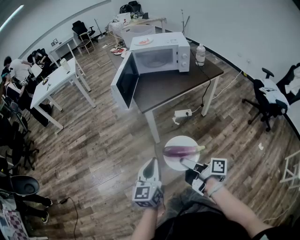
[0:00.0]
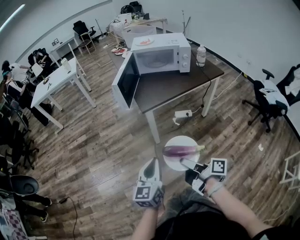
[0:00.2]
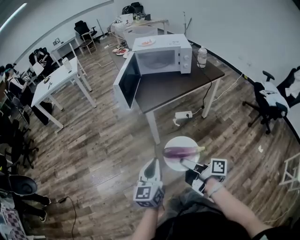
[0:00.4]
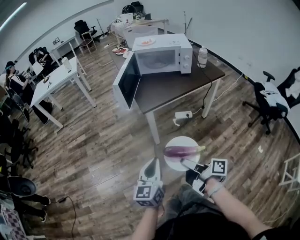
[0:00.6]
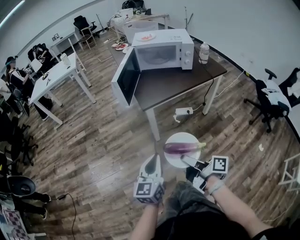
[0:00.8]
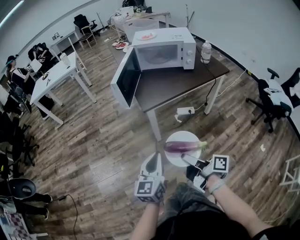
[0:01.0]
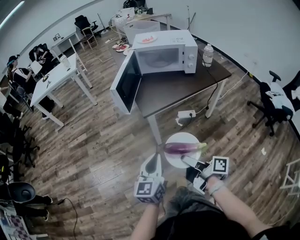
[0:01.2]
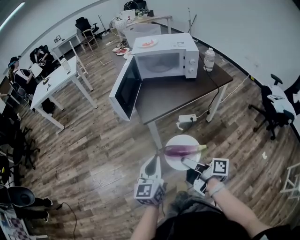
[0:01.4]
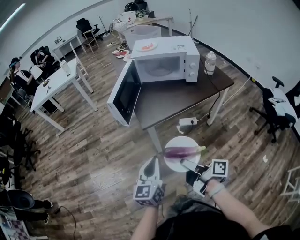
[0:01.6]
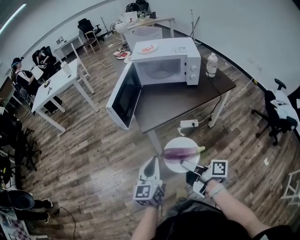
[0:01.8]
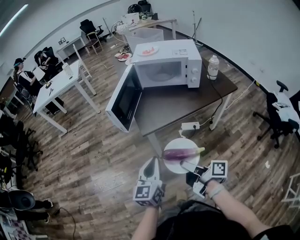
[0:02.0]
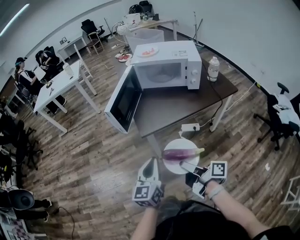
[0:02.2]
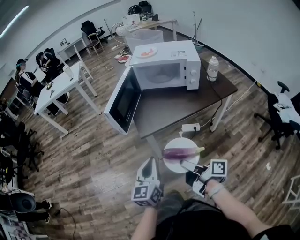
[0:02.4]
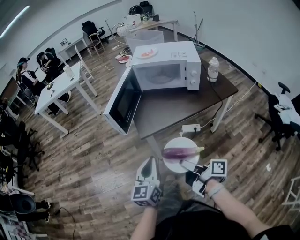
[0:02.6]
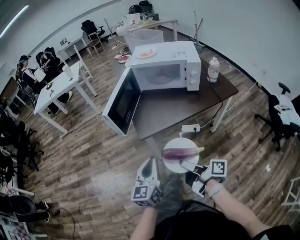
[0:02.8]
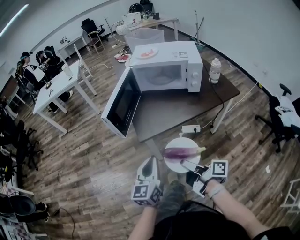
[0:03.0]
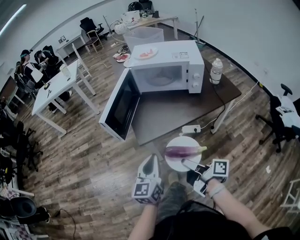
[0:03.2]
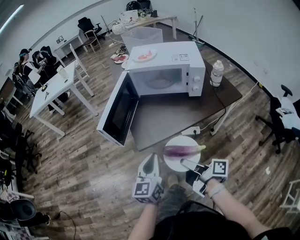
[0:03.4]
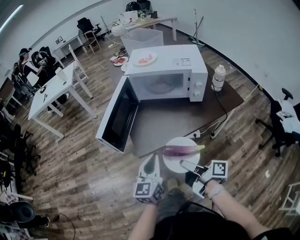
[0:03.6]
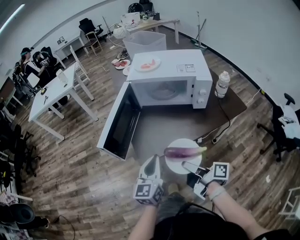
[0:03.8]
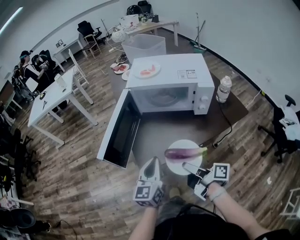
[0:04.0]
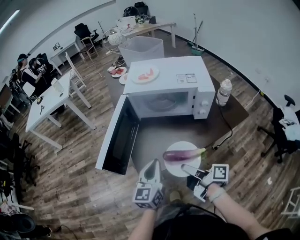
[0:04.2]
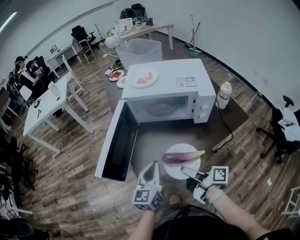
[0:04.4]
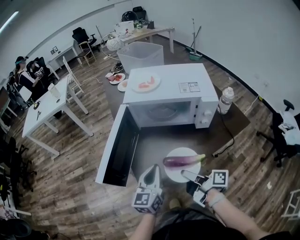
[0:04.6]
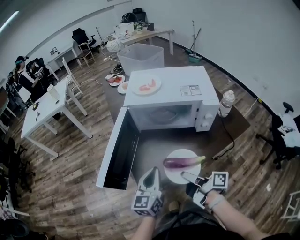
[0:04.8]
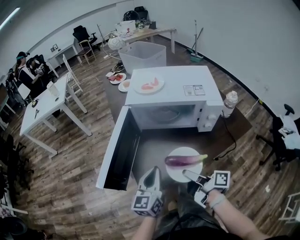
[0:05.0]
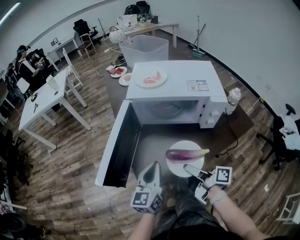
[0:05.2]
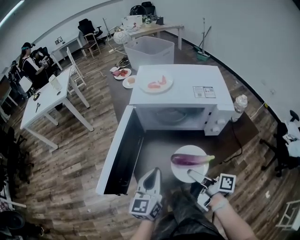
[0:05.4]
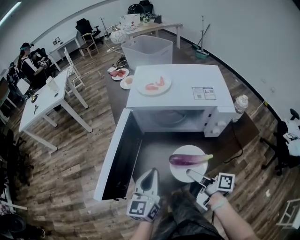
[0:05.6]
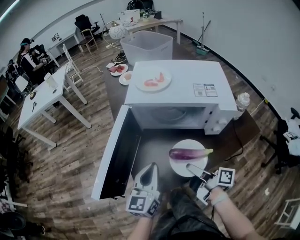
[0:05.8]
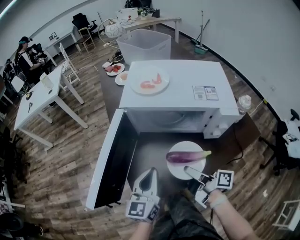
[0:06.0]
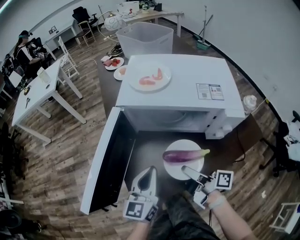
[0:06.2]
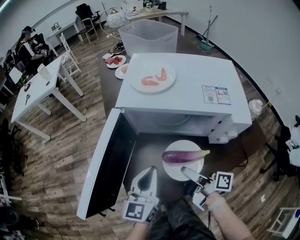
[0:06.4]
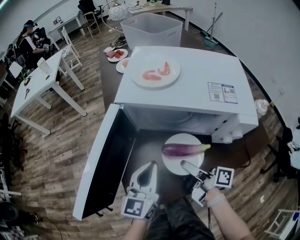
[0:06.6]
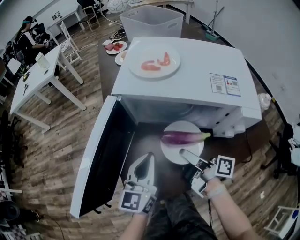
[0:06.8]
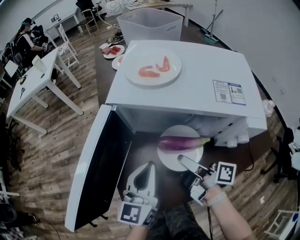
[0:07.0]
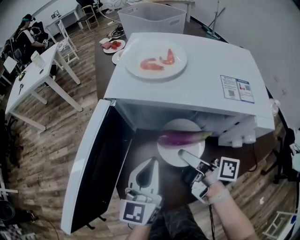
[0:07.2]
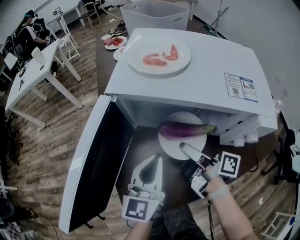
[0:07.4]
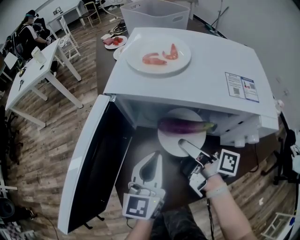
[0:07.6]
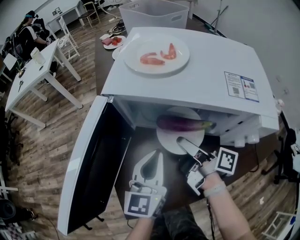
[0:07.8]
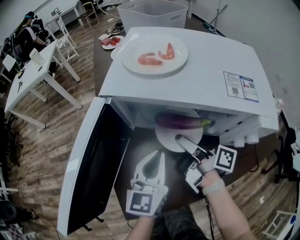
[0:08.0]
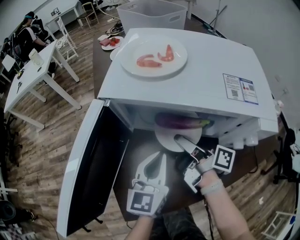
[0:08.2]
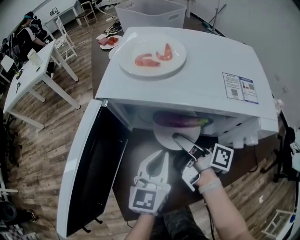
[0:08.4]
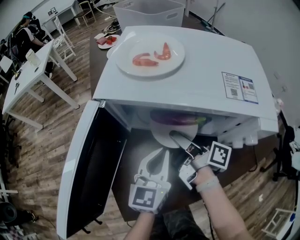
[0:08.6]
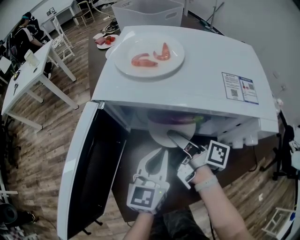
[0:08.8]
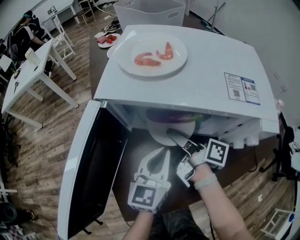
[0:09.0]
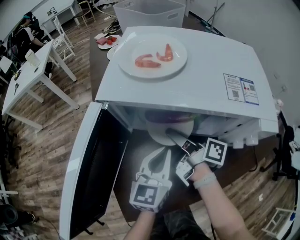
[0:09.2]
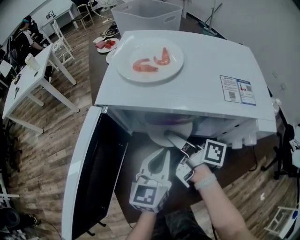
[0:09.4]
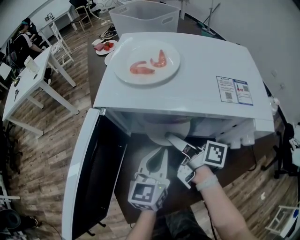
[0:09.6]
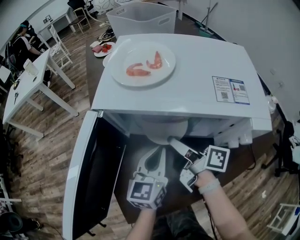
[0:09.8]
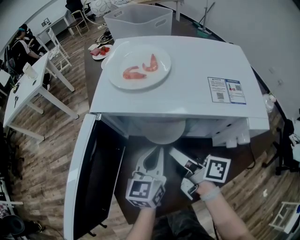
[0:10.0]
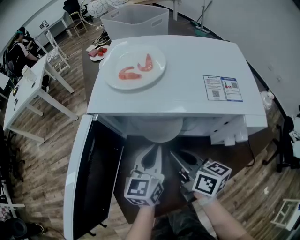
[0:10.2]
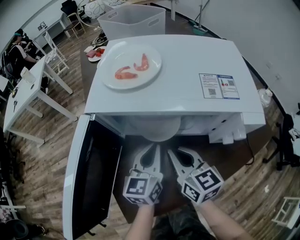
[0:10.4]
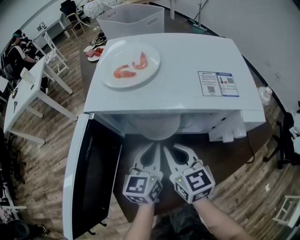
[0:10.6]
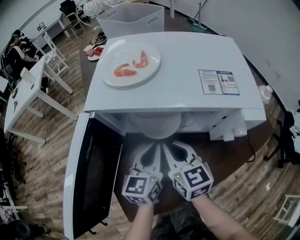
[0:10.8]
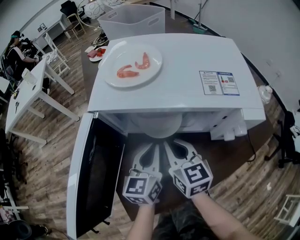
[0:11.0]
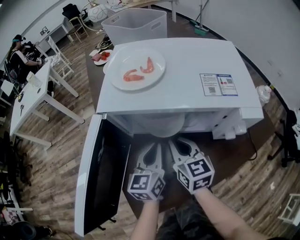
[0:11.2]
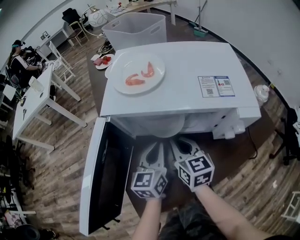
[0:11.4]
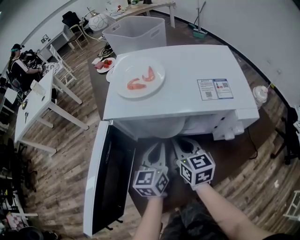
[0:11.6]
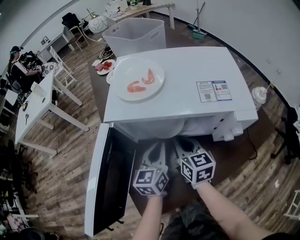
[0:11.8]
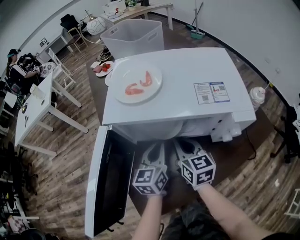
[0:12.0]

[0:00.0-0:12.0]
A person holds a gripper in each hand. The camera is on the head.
0:00.0 to 0:01.6: Both grippers travel together forward, approximately 10 cm.
0:01.6 to 0:03.0: The grippers both shift forward and to the right by about 10 cm.
0:03.0 to 0:04.4: Both grippers move forward, some 20 cm.
0:04.4 to 0:06.0: The two grippers go some 10 cm forward.
0:06.0 to 0:07.6: The left gripper moves forward, some 10 cm. The right gripper goes roughly 15 cm forward.
0:07.6 to 0:09.0: The right gripper changes place by about 5 cm; the left gripper changes place by approximately 5 cm.
0:09.0 to 0:10.4: The right gripper moves backward, about 5 cm, and rotates around the line of its fingers by roughly 60 degrees, counterclockwise from behind.
0:10.4 to 0:12.0: There are only small adjustments of the grippers.

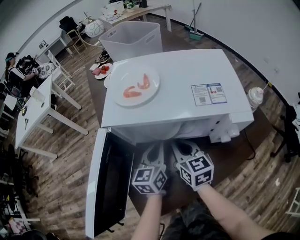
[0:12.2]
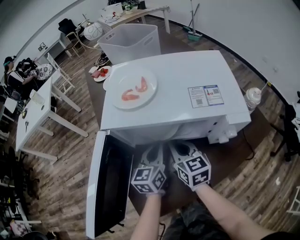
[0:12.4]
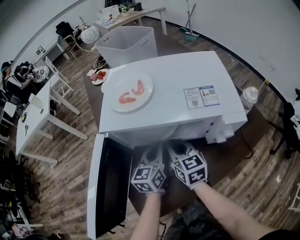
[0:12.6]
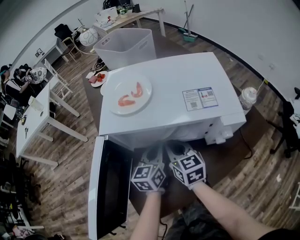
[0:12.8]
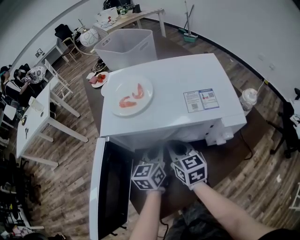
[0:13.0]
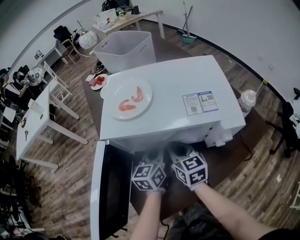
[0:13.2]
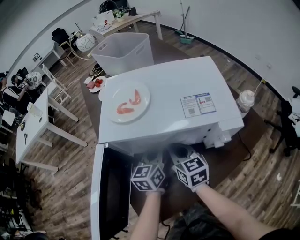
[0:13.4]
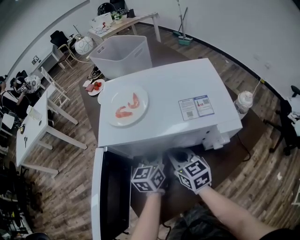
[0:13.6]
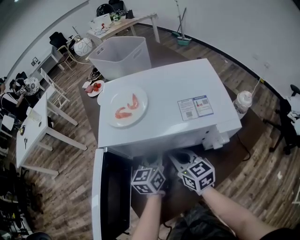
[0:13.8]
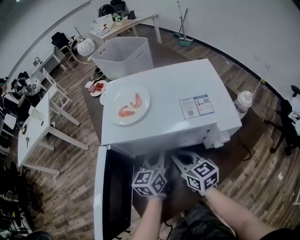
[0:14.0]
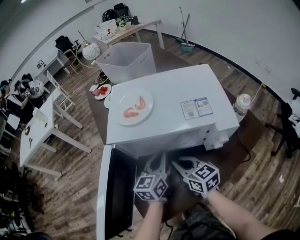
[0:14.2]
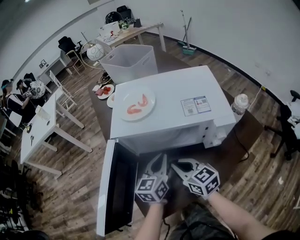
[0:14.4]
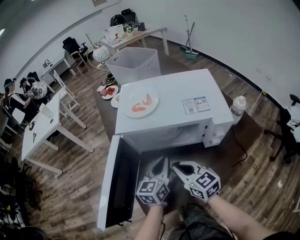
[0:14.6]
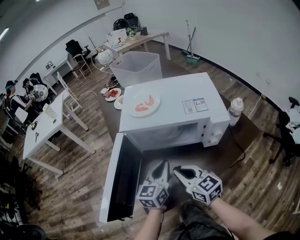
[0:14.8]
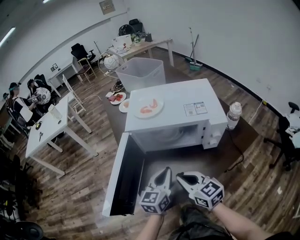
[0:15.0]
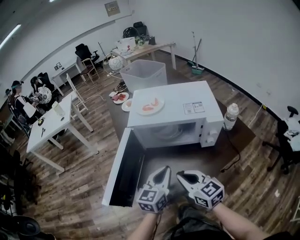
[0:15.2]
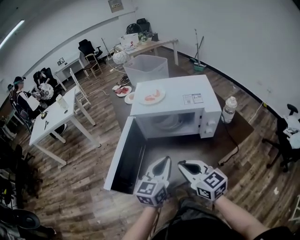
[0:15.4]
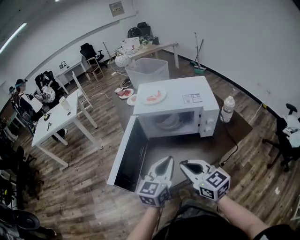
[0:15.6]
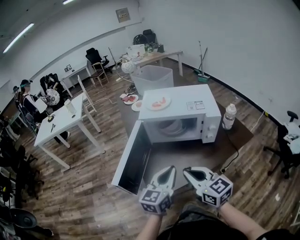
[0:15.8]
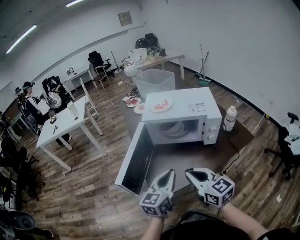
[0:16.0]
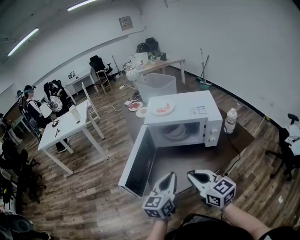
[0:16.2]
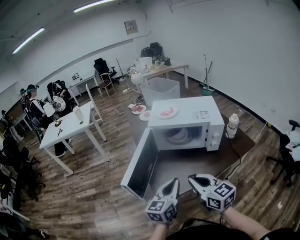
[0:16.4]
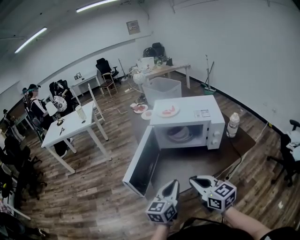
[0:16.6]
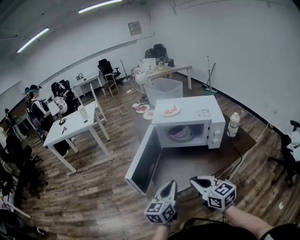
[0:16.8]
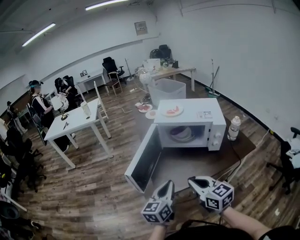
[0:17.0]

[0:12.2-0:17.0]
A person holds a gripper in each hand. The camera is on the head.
0:12.2 to 0:13.8: There are only small adjustments of the grippers.
0:13.8 to 0:15.4: The two grippers go about 25 cm backward and upward.
0:15.4 to 0:17.0: The right gripper goes about 10 cm backward; the left gripper shifts about 15 cm backward and to the left.

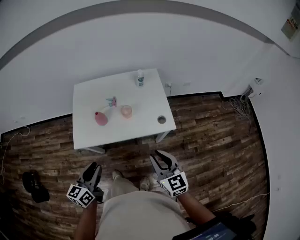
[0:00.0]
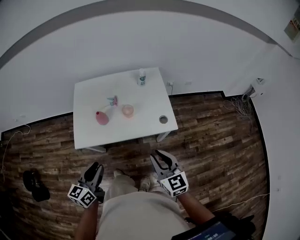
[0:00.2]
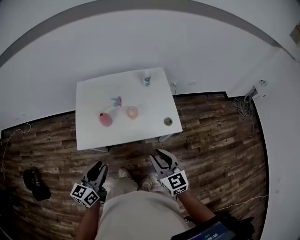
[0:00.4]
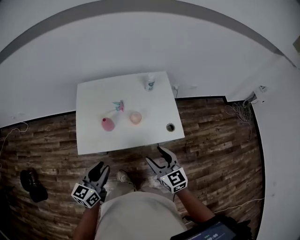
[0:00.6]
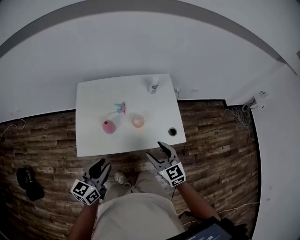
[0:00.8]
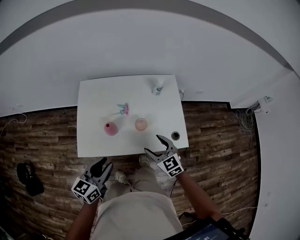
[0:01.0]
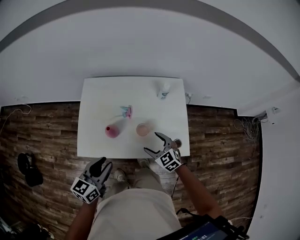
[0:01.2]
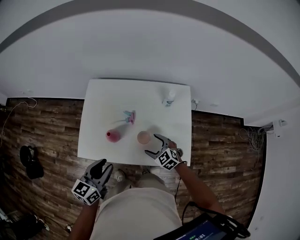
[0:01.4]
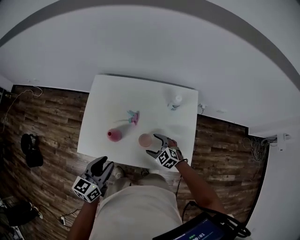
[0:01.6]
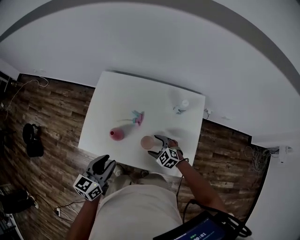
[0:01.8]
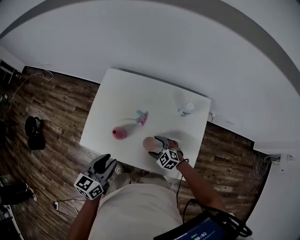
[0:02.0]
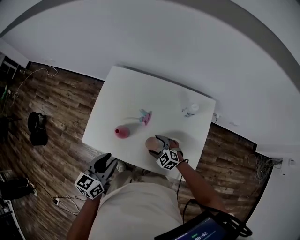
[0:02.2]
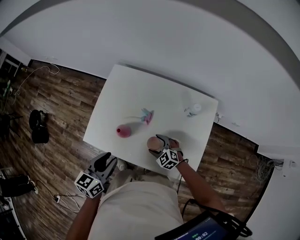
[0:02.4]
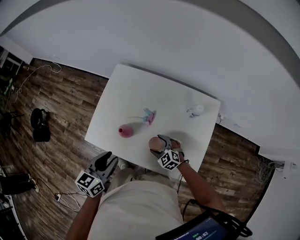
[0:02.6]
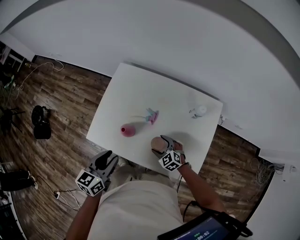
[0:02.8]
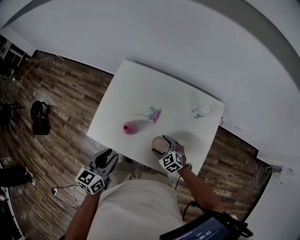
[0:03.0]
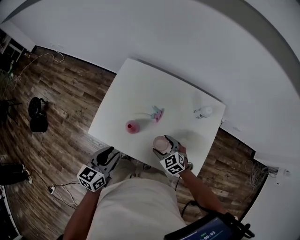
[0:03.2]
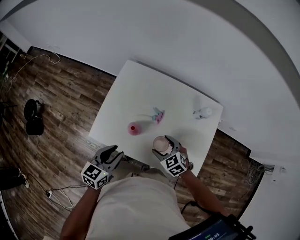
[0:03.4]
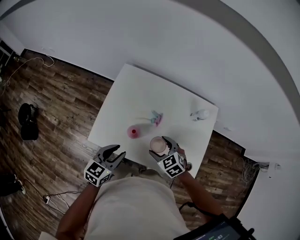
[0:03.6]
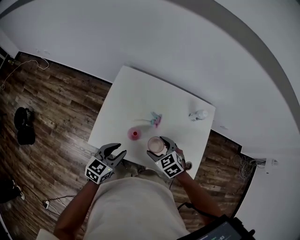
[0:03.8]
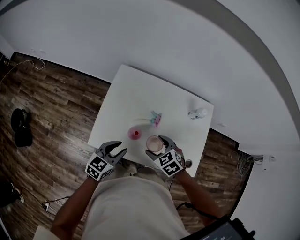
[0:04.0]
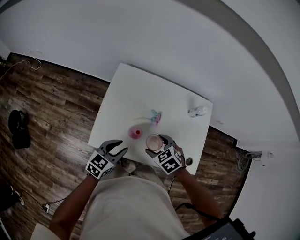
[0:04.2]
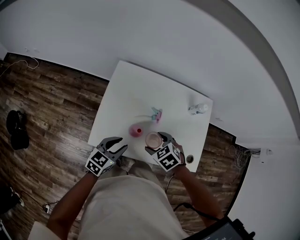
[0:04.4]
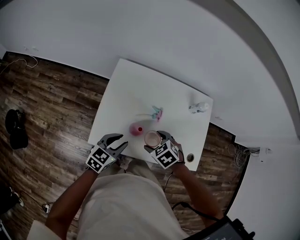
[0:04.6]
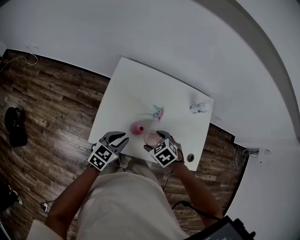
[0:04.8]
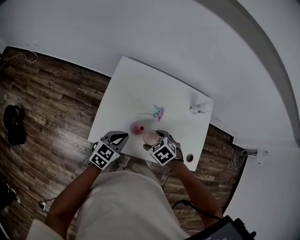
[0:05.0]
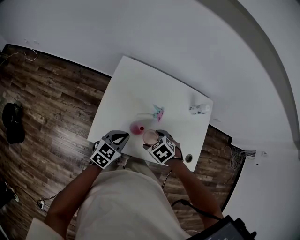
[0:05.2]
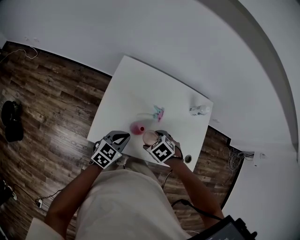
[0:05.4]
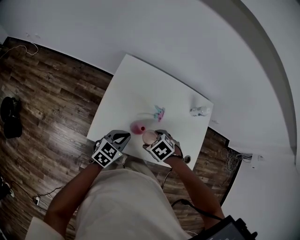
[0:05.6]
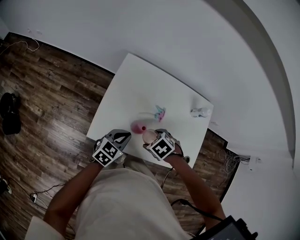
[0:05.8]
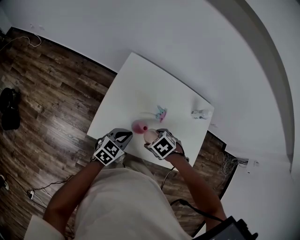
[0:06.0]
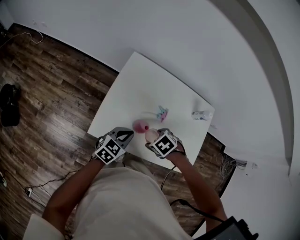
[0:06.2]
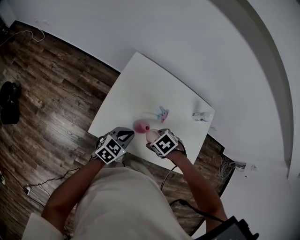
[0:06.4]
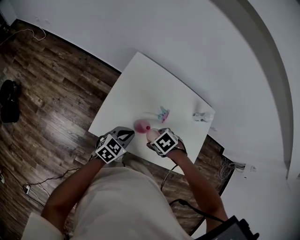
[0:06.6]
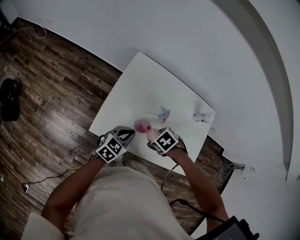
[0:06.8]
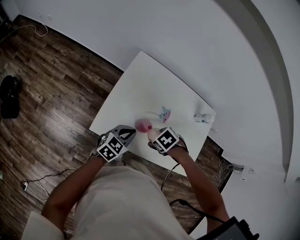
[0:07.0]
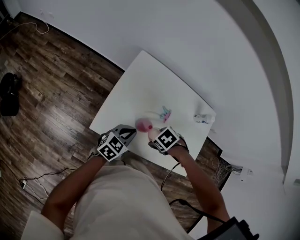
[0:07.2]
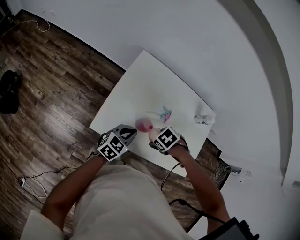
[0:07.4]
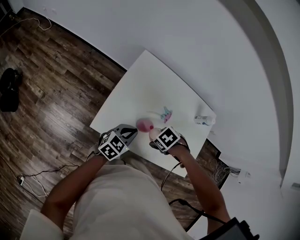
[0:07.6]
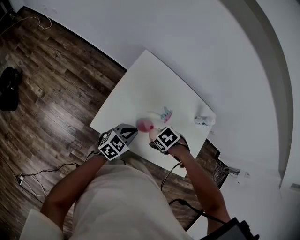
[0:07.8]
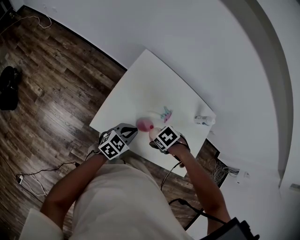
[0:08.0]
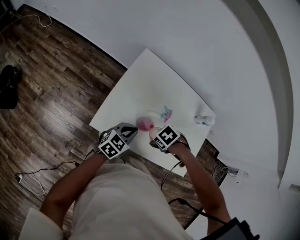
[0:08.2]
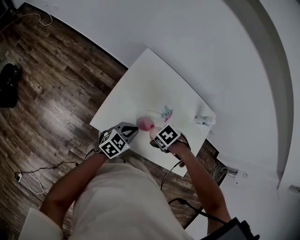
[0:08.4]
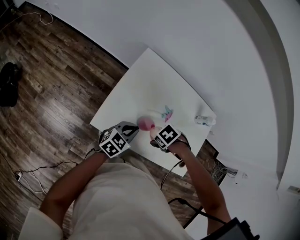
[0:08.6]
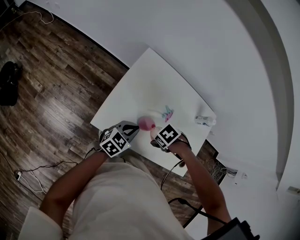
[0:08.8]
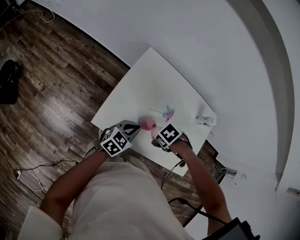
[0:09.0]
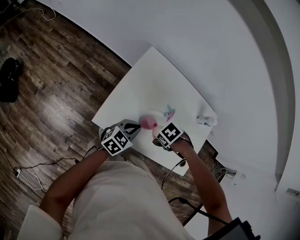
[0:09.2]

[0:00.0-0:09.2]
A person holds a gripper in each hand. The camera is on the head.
0:00.0 to 0:01.6: The left gripper ends up about 25 cm from where it was.
0:01.6 to 0:03.0: The left gripper moves about 5 cm.
0:03.0 to 0:04.6: The left gripper shifts by roughly 10 cm, and rotates about 30 degrees.
0:04.6 to 0:06.2: The left gripper closes up.
